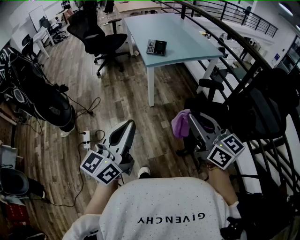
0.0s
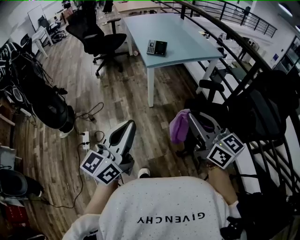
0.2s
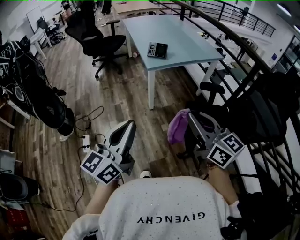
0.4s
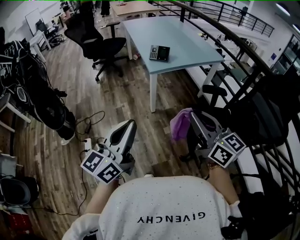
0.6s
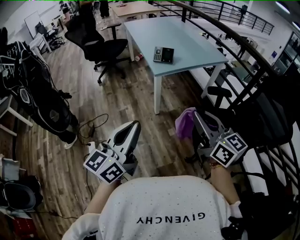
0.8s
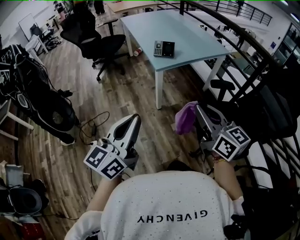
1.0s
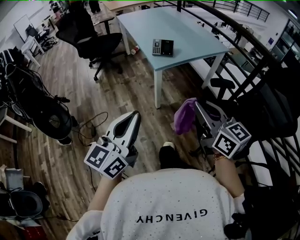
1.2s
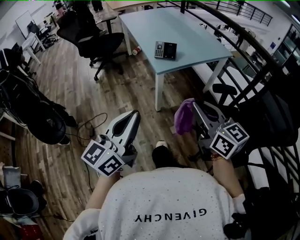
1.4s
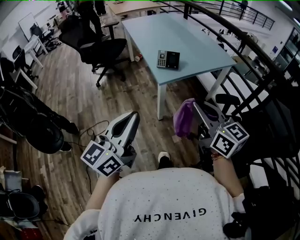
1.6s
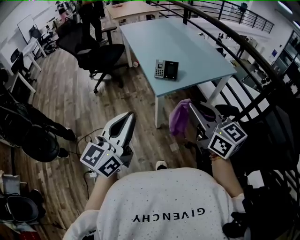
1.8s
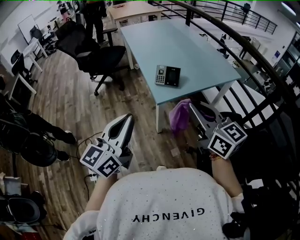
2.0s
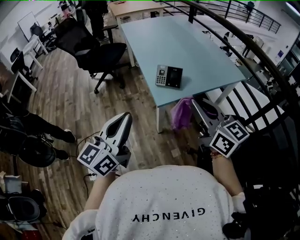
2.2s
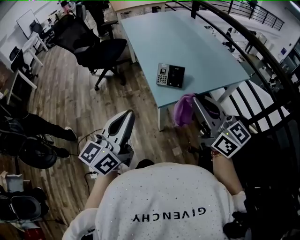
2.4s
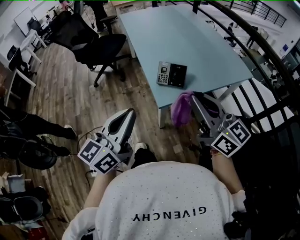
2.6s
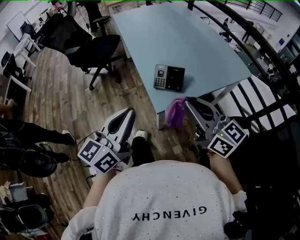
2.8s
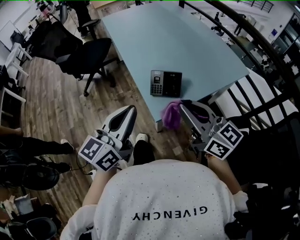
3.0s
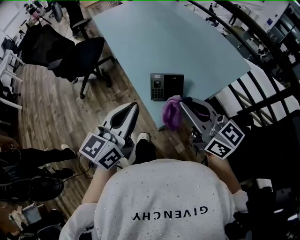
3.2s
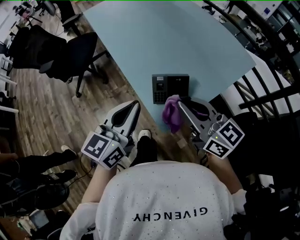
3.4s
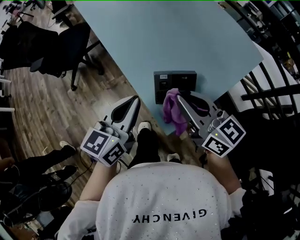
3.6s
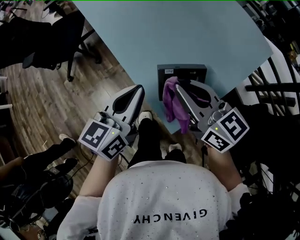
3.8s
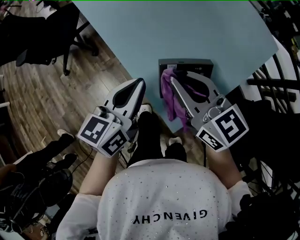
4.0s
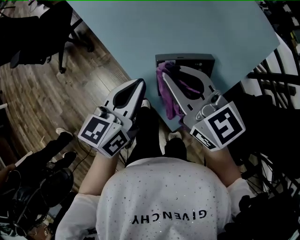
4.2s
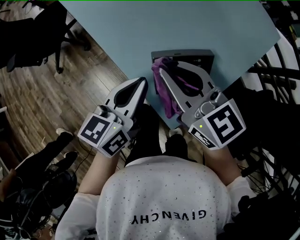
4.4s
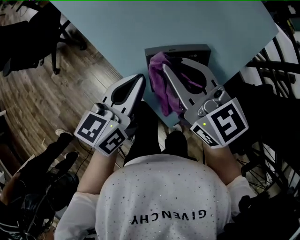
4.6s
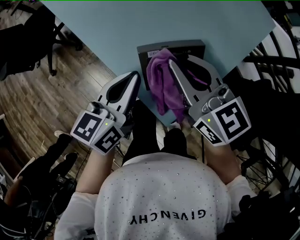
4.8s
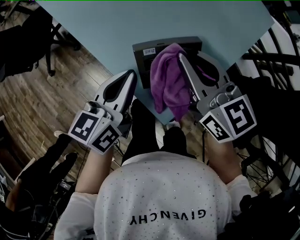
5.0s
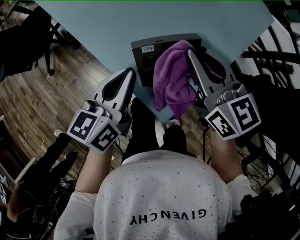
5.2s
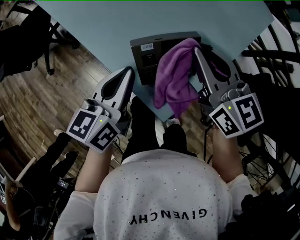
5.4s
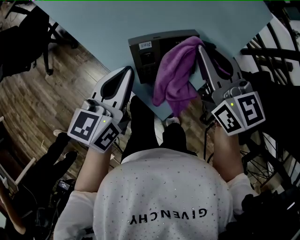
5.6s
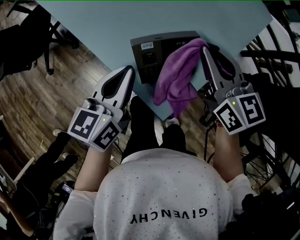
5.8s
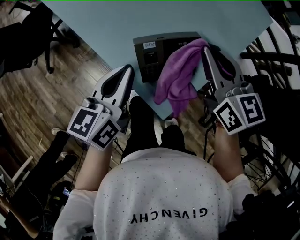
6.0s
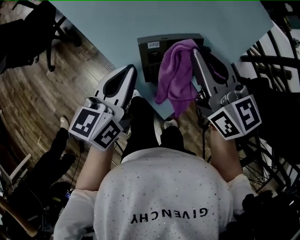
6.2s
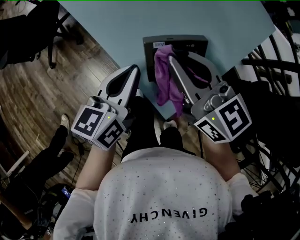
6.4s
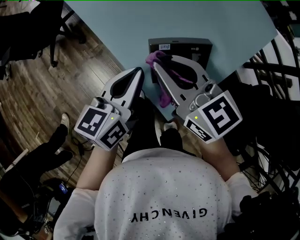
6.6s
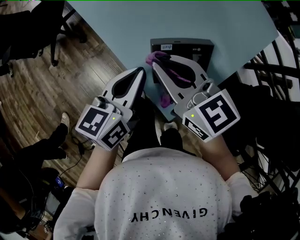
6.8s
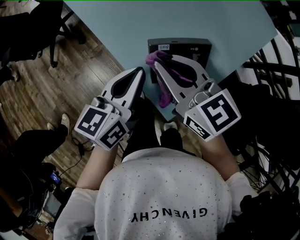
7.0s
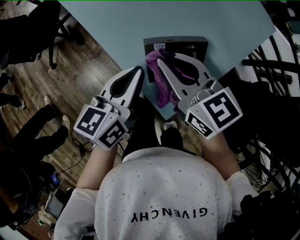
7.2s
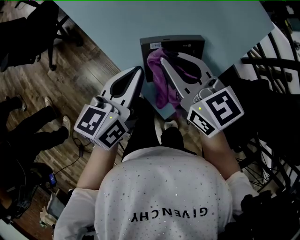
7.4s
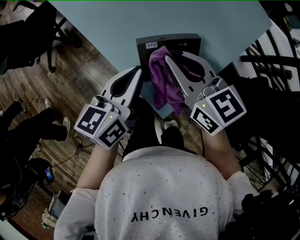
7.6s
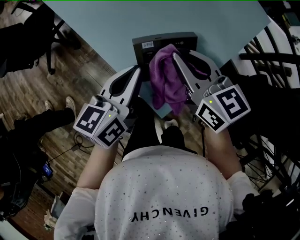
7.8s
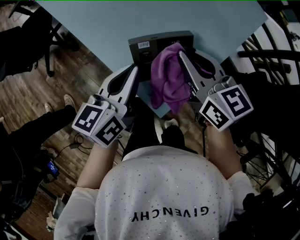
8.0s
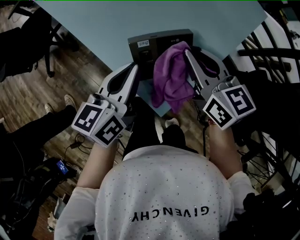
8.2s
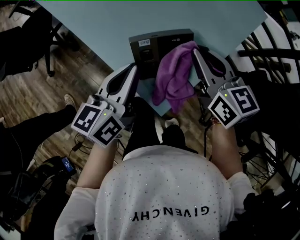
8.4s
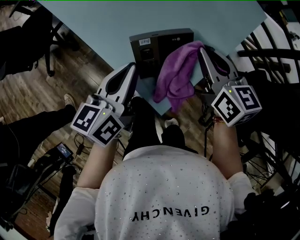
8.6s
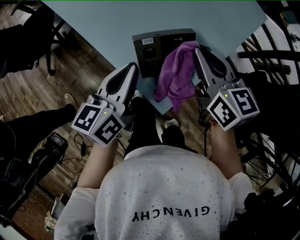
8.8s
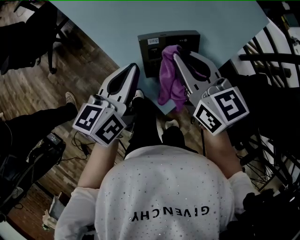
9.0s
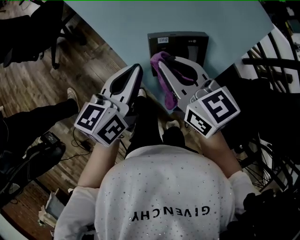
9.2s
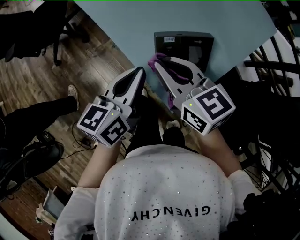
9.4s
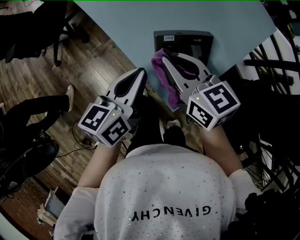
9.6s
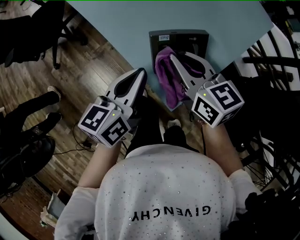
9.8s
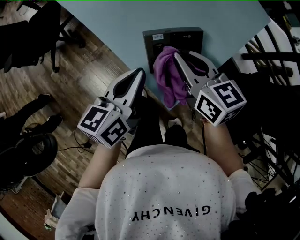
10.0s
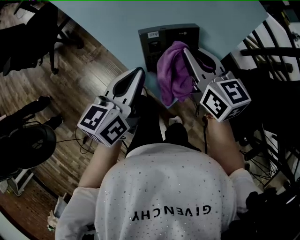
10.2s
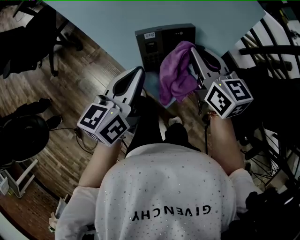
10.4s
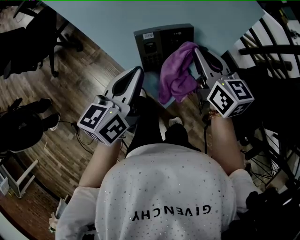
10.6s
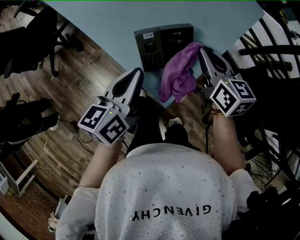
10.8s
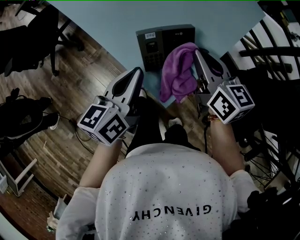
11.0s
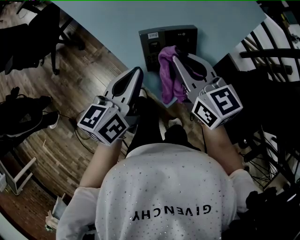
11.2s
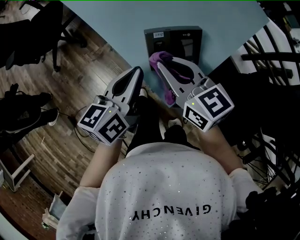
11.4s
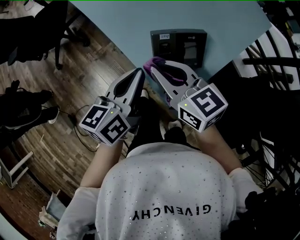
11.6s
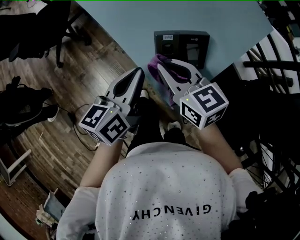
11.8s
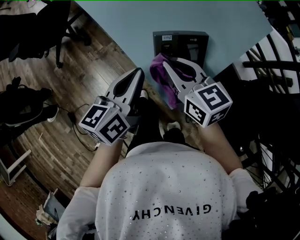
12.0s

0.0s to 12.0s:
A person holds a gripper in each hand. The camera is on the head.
0.0s to 1.6s: Both grippers move forward, about 25 cm.
1.6s to 3.0s: The two grippers go roughly 35 cm forward.
3.0s to 4.4s: The right gripper heads forward and downward, covering approximately 25 cm, and swivels approximately 20 degrees. Meanwhile the left gripper shifts some 30 cm downward and forward, and rotates roughly 30 degrees.
4.4s to 6.0s: The right gripper shifts approximately 15 cm to the right, and changes its angle by roughly 20 degrees.
6.0s to 7.6s: The right gripper shifts approximately 10 cm to the left.
7.6s to 9.0s: The right gripper goes to the right and returns, approximately 10 cm each way.
9.0s to 10.4s: The right gripper heads to the right, covering some 5 cm.
10.4s to 12.0s: The right gripper travels to the left by roughly 10 cm.

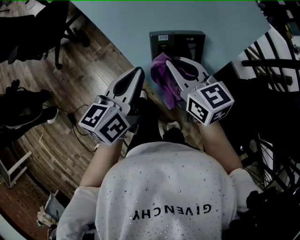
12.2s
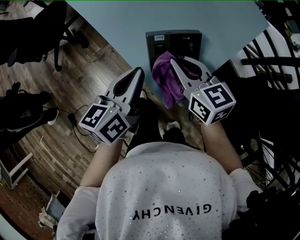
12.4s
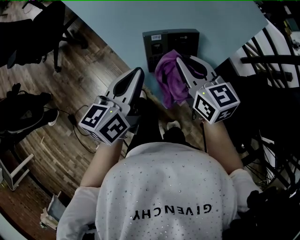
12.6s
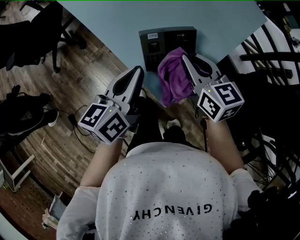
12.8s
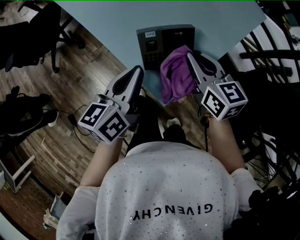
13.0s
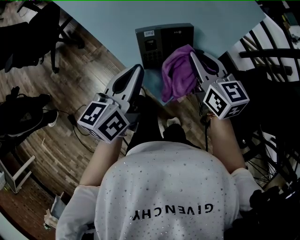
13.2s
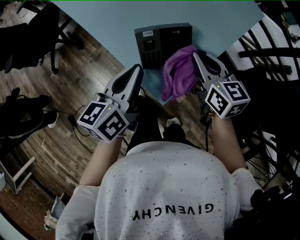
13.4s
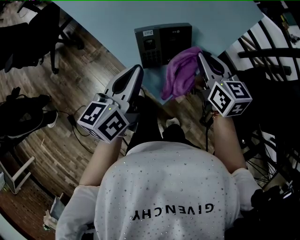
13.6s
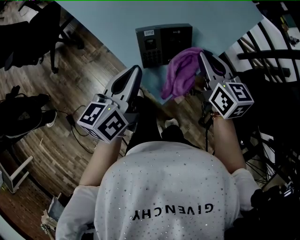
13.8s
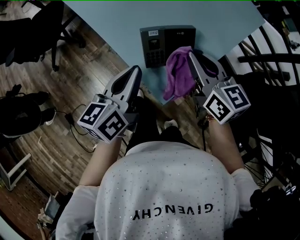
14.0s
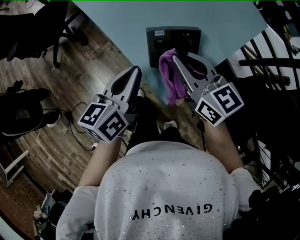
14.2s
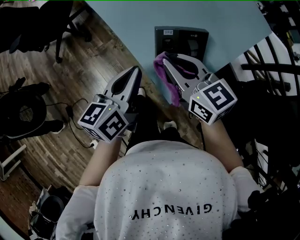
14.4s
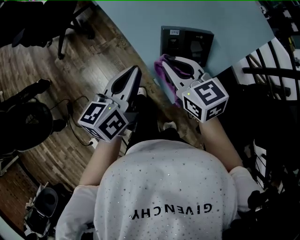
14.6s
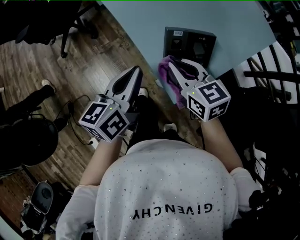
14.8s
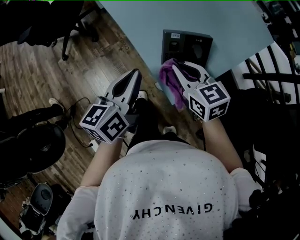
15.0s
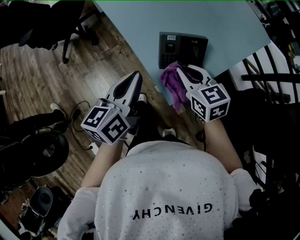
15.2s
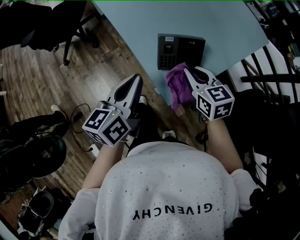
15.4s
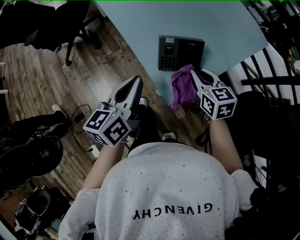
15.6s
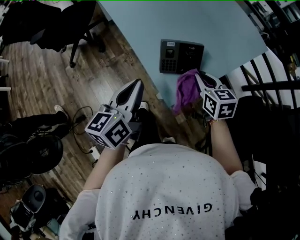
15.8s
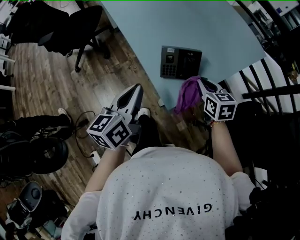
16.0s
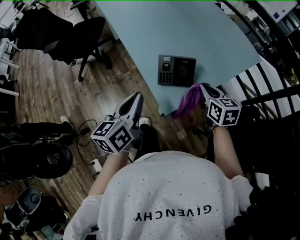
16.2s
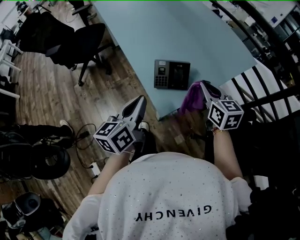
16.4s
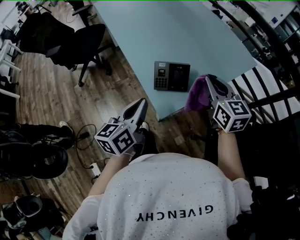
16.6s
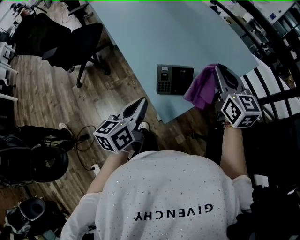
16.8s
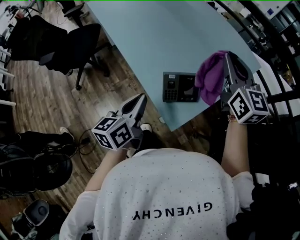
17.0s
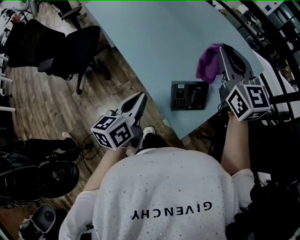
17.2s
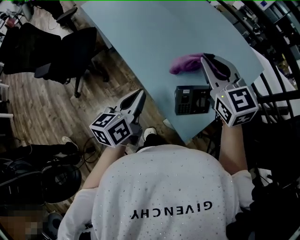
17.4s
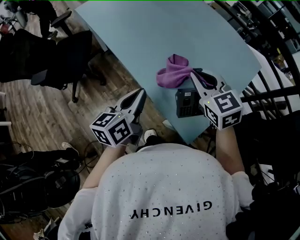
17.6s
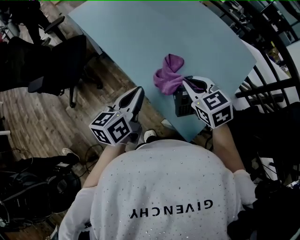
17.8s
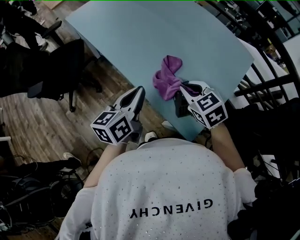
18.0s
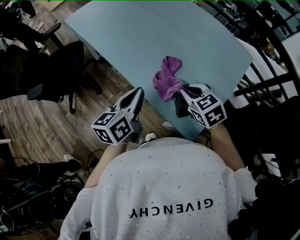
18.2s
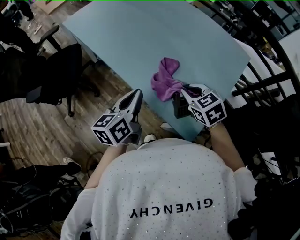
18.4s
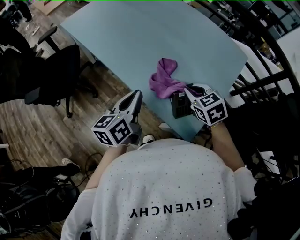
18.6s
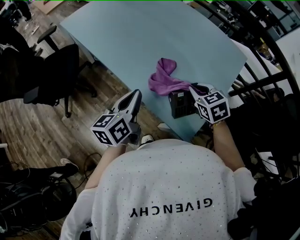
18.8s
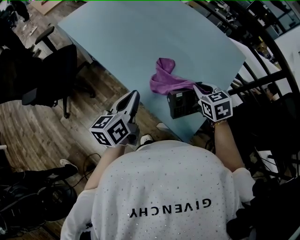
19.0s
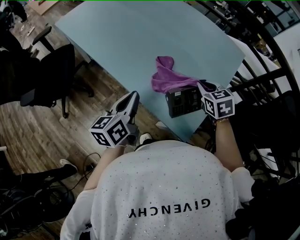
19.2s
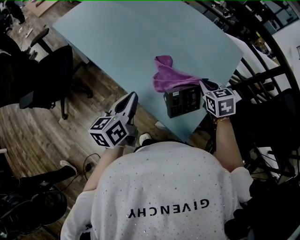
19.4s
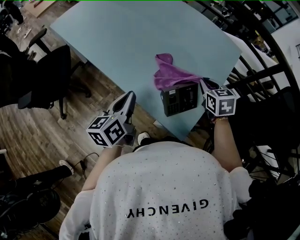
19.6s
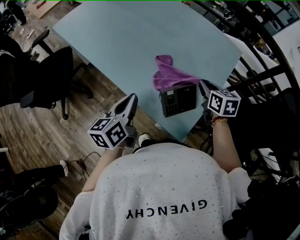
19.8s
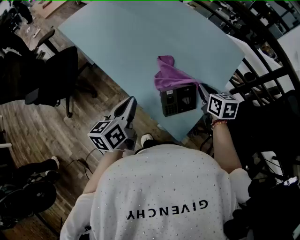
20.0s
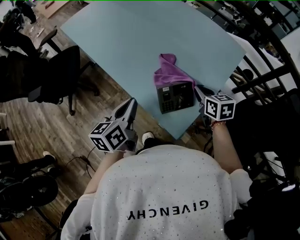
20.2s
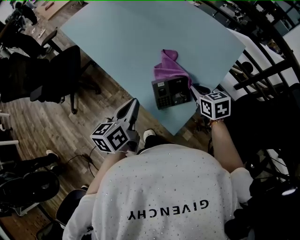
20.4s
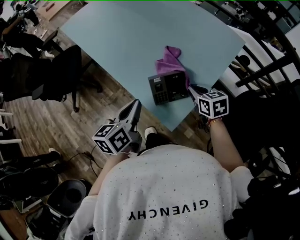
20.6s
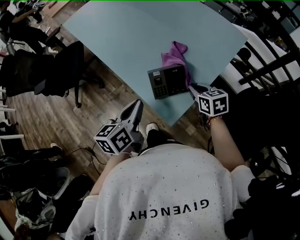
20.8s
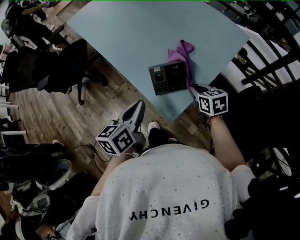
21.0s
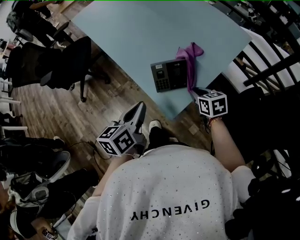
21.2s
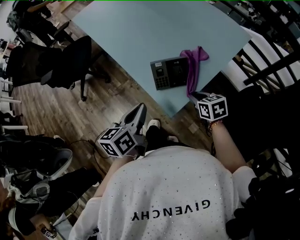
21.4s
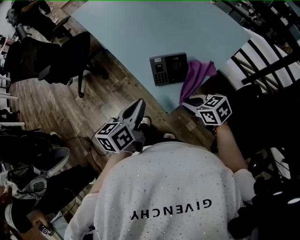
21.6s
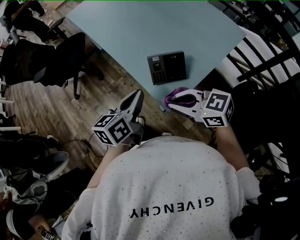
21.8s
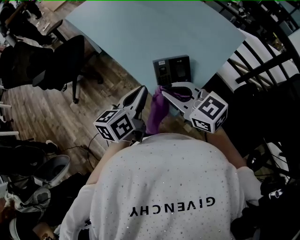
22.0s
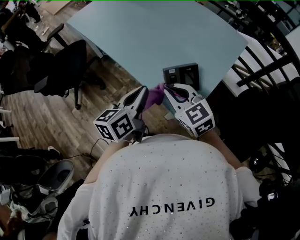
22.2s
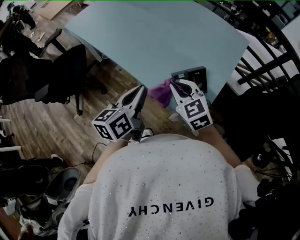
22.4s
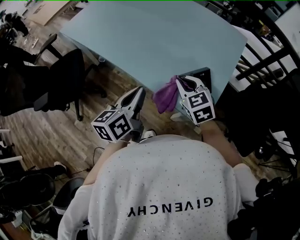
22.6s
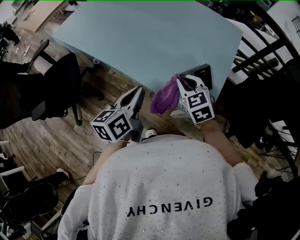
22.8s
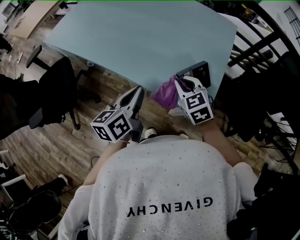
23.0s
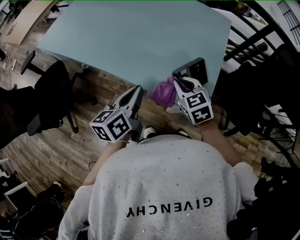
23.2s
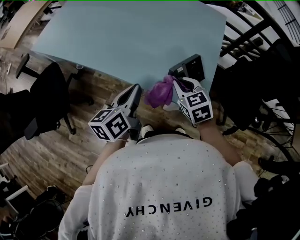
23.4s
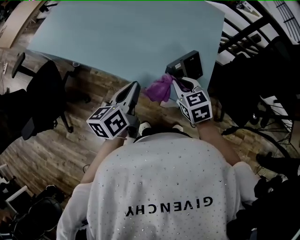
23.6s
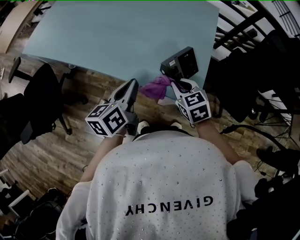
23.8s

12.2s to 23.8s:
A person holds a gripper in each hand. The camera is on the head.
12.2s to 13.6s: The right gripper moves to the right, some 15 cm.
13.6s to 15.0s: The left gripper shifts roughly 5 cm to the left. Meanwhile the right gripper is displaced to the left by some 15 cm, and changes its angle by some 30 degrees.
15.0s to 16.6s: The right gripper heads to the right and upward, covering about 20 cm. The left gripper is displaced backward, upward and to the right by about 10 cm.
16.6s to 18.0s: The left gripper shifts roughly 25 cm forward and to the left; the right gripper moves to the left and forward, approximately 20 cm, and rotates roughly 30 degrees.
18.0s to 19.4s: The right gripper heads to the right, covering about 15 cm, and changes its angle by approximately 20 degrees.
19.4s to 21.0s: The left gripper moves backward and to the right, some 20 cm, while the right gripper travels backward and downward by about 15 cm, and rotates some 20 degrees.
21.0s to 22.4s: The left gripper moves approximately 15 cm; the right gripper moves roughly 20 cm, and rotates roughly 30 degrees.
22.4s to 23.8s: The left gripper moves roughly 5 cm. Meanwhile the right gripper shifts approximately 5 cm downward, and rotates about 30 degrees.
